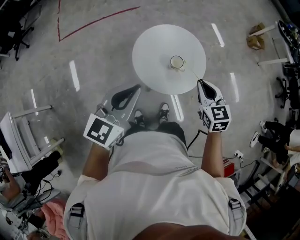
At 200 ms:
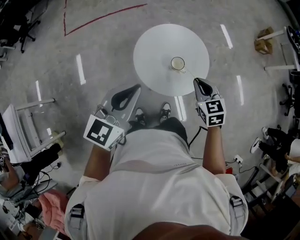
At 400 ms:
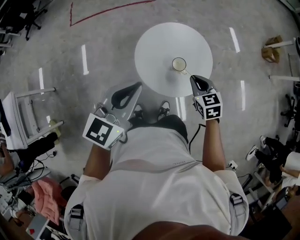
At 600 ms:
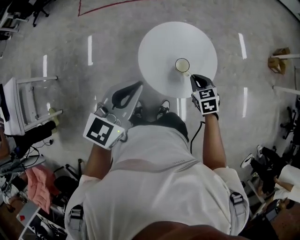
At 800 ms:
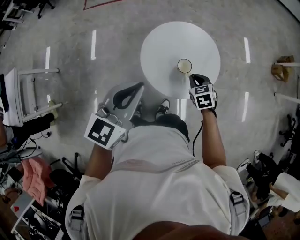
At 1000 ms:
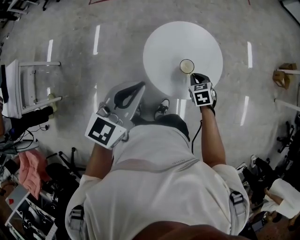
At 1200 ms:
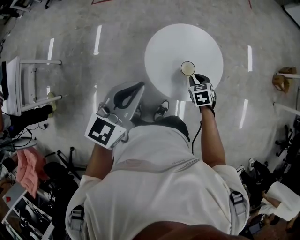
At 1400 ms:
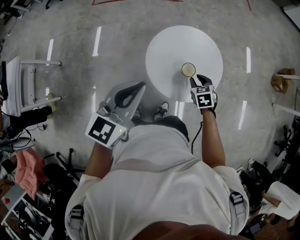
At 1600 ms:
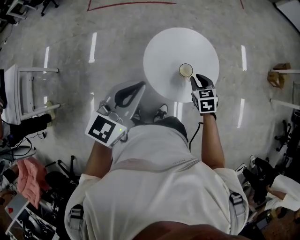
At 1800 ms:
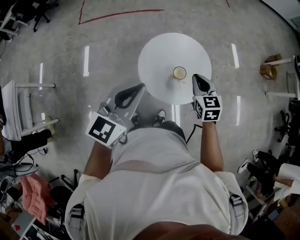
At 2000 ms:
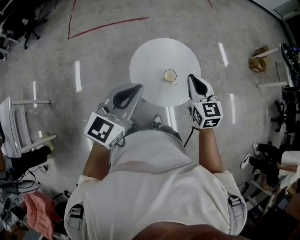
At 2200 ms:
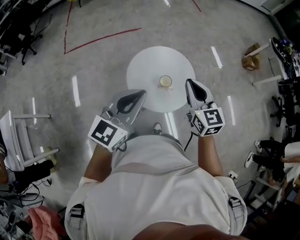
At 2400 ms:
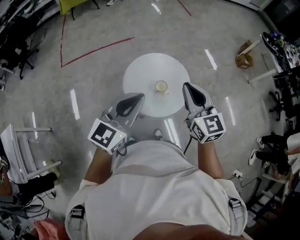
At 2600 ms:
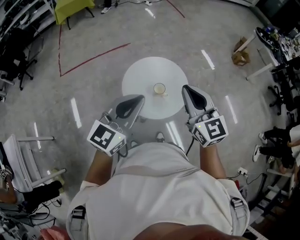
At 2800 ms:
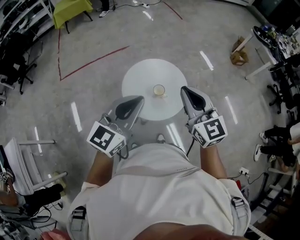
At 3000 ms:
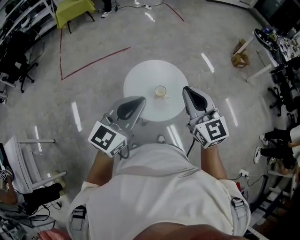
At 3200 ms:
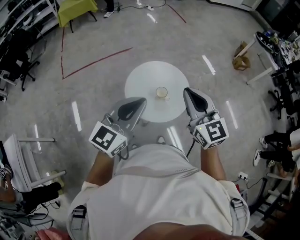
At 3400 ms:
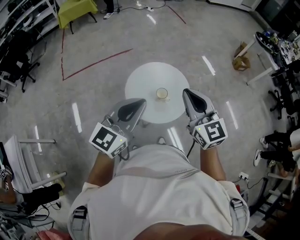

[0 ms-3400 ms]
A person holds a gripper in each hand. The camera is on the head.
0 ms to 1600 ms: The right gripper goes approximately 15 cm downward and forward, and changes its angle by about 20 degrees.
1600 ms to 3400 ms: The left gripper moves upward and to the right, about 10 cm, and changes its angle by about 30 degrees; the right gripper goes approximately 35 cm upward and backward, and angles its fingers upward, by some 40 degrees.

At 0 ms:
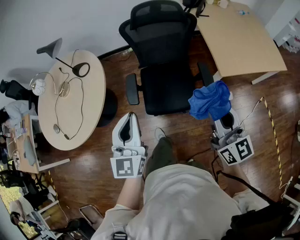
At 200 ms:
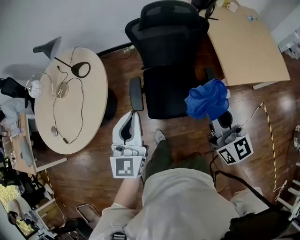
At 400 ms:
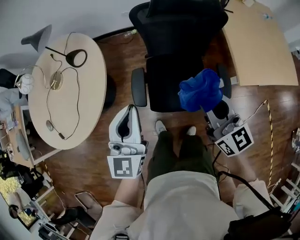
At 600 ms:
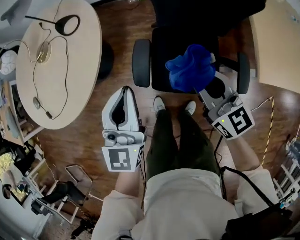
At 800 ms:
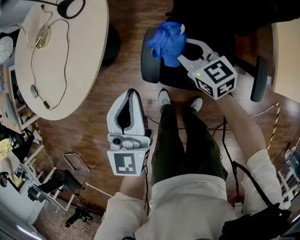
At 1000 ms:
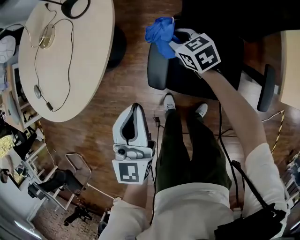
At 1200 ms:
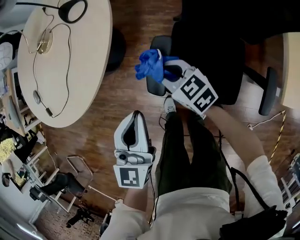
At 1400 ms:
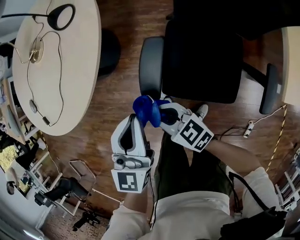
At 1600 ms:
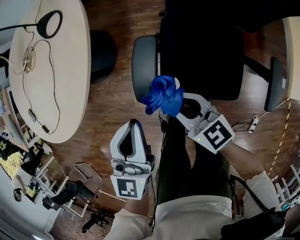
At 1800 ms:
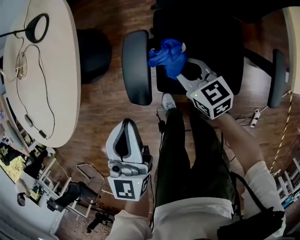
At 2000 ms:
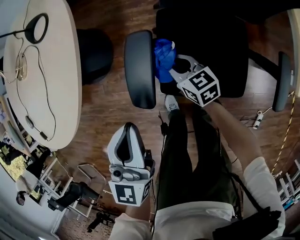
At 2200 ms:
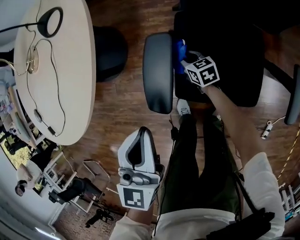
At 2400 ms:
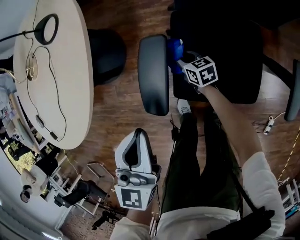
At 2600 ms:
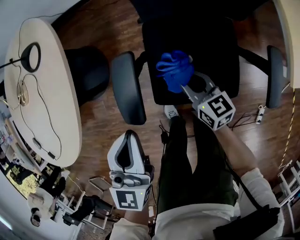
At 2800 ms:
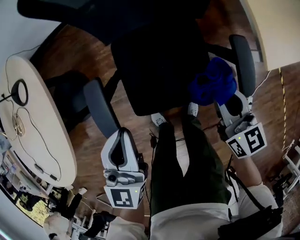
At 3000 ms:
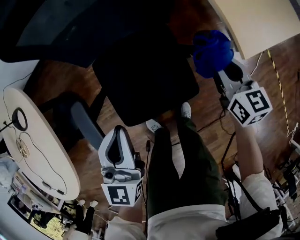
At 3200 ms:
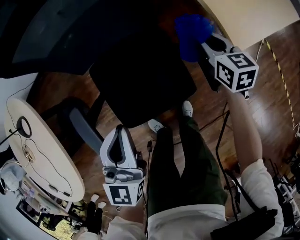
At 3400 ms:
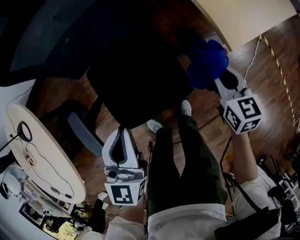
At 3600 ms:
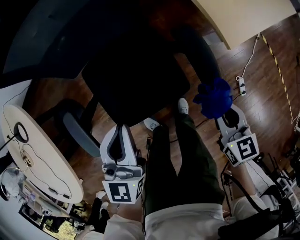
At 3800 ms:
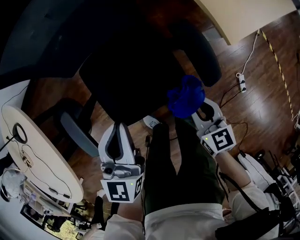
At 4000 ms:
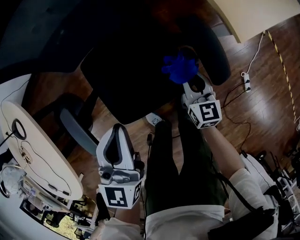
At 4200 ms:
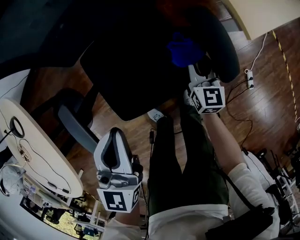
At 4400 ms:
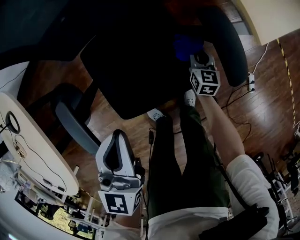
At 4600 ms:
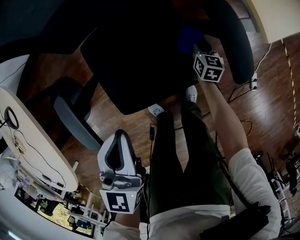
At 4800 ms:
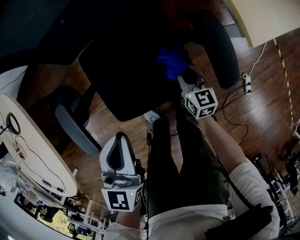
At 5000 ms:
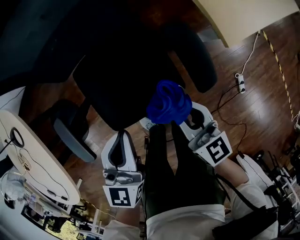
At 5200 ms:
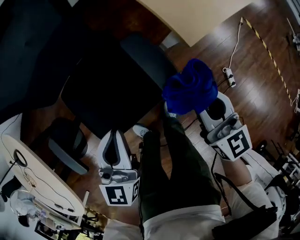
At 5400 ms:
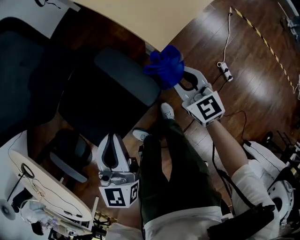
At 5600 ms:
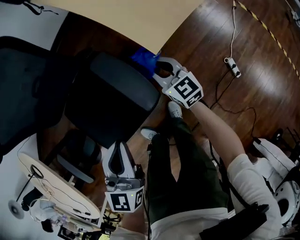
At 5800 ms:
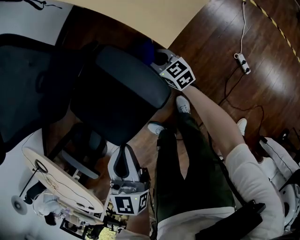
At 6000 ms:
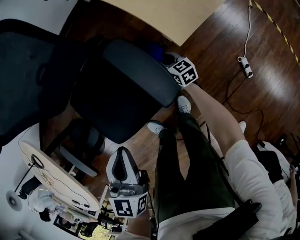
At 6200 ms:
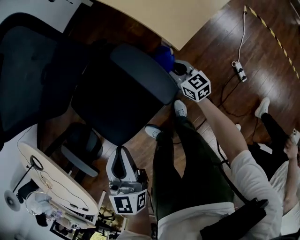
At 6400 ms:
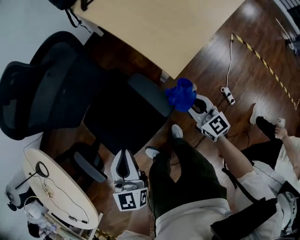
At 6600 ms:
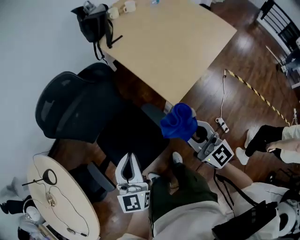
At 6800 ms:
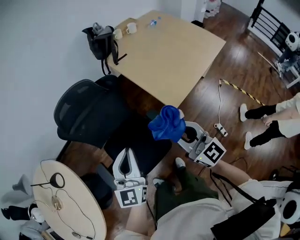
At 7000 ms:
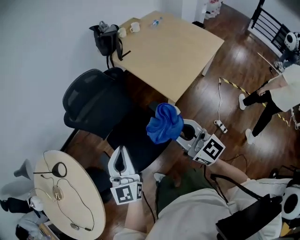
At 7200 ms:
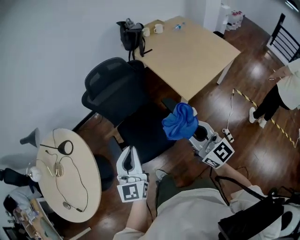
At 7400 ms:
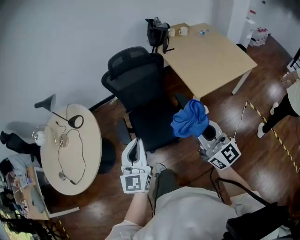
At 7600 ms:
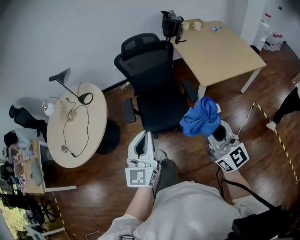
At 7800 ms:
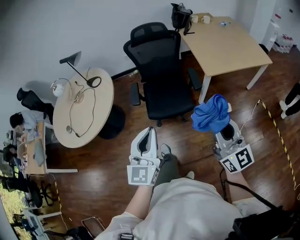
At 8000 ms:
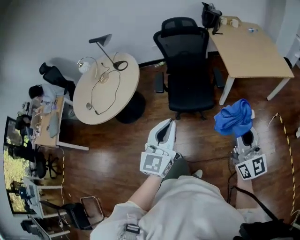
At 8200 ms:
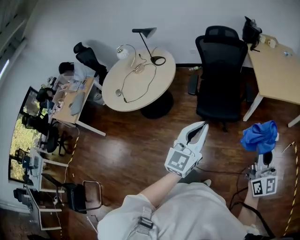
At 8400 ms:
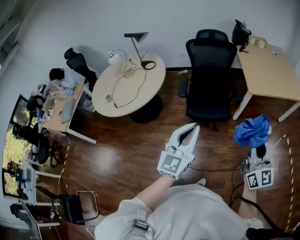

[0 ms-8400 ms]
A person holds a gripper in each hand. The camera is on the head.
0 ms to 1400 ms: Both grippers travel together downward, approximately 40 cm. The right gripper turns by about 70 degrees.
1400 ms to 2800 ms: The right gripper goes downward and returns, approximately 25 cm each way, and turns by about 60 degrees. The left gripper shifts by approximately 15 cm, and swivels some 20 degrees.
2800 ms to 4200 ms: The right gripper goes forward and backward, roughly 20 cm each way, reversing 2 times, and swivels approximately 30 degrees. Meanwhile the left gripper moves to the right, approximately 10 cm.
4200 ms to 5600 ms: The right gripper swings up and down, roughly 35 cm each way, with 2 reversals. The left gripper moves to the right, about 25 cm.
5600 ms to 7000 ms: The left gripper moves upward and to the left, some 40 cm, and rotates some 30 degrees, while the right gripper shifts approximately 50 cm upward, and changes its angle by roughly 30 degrees.
7000 ms to 8400 ms: The pair of grippers is taken backward, approximately 50 cm.

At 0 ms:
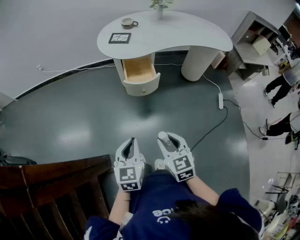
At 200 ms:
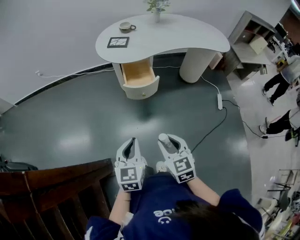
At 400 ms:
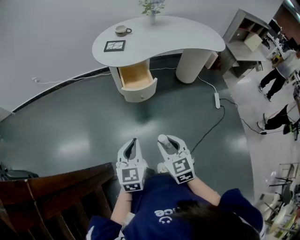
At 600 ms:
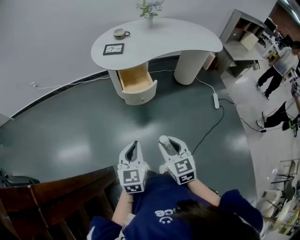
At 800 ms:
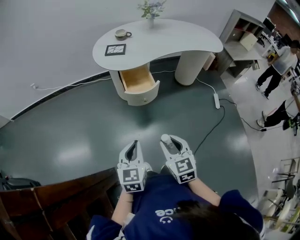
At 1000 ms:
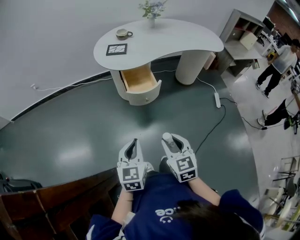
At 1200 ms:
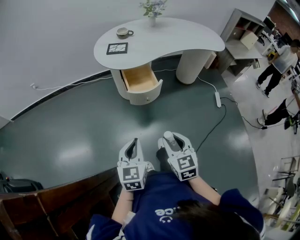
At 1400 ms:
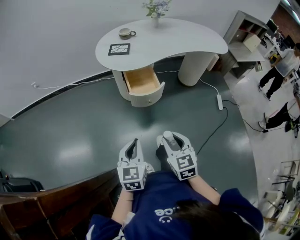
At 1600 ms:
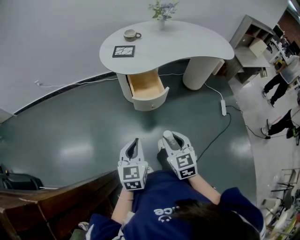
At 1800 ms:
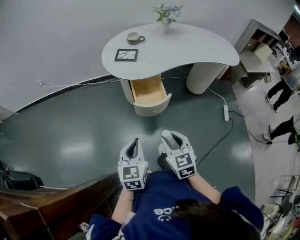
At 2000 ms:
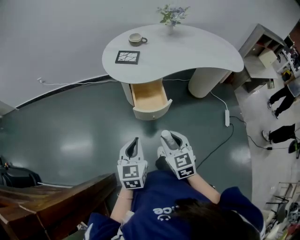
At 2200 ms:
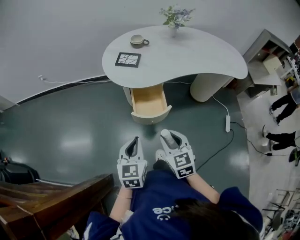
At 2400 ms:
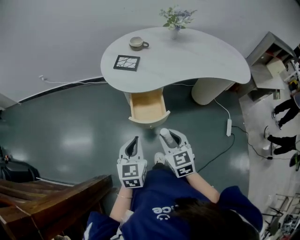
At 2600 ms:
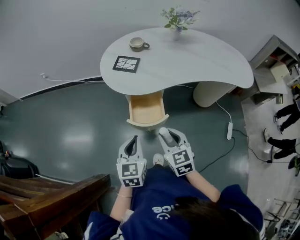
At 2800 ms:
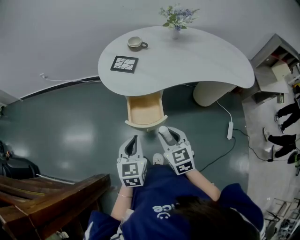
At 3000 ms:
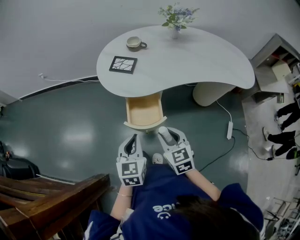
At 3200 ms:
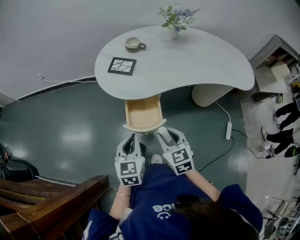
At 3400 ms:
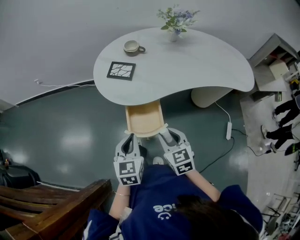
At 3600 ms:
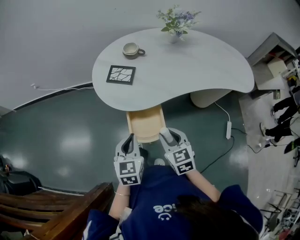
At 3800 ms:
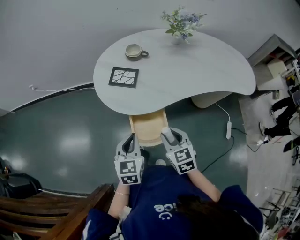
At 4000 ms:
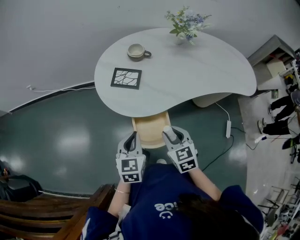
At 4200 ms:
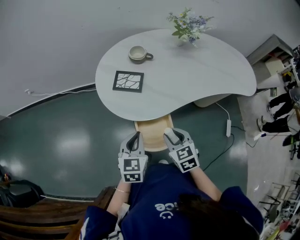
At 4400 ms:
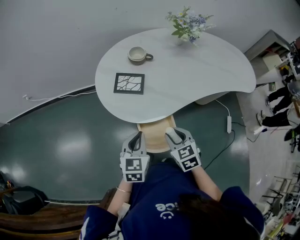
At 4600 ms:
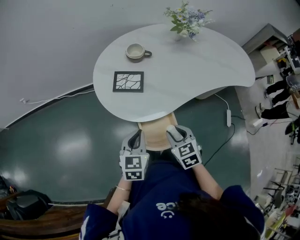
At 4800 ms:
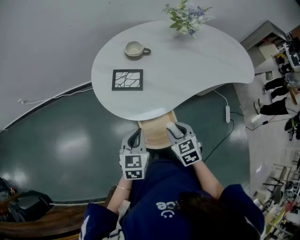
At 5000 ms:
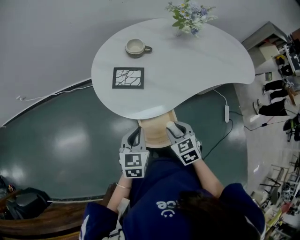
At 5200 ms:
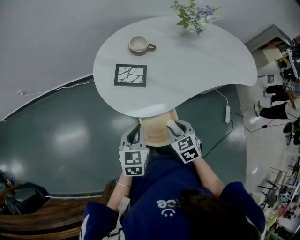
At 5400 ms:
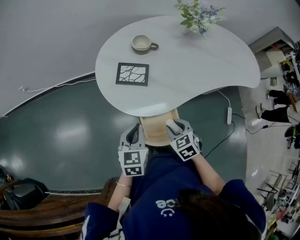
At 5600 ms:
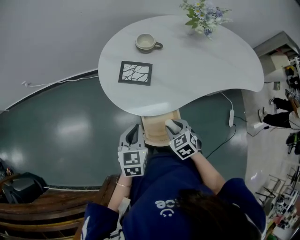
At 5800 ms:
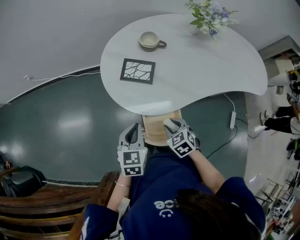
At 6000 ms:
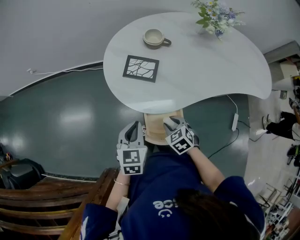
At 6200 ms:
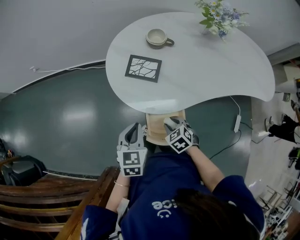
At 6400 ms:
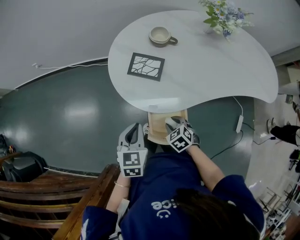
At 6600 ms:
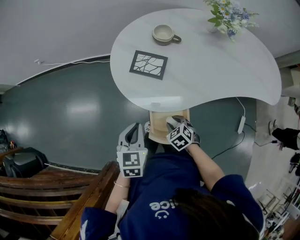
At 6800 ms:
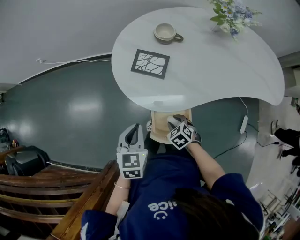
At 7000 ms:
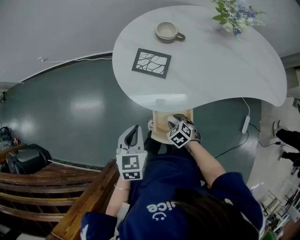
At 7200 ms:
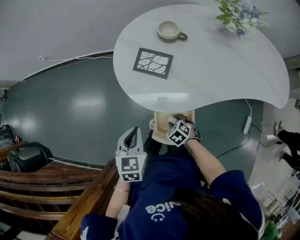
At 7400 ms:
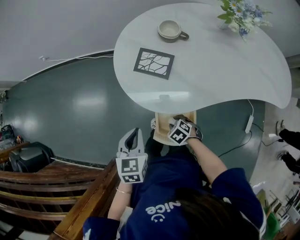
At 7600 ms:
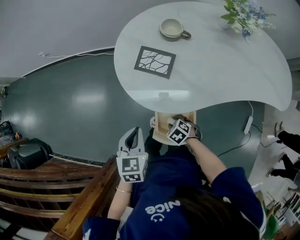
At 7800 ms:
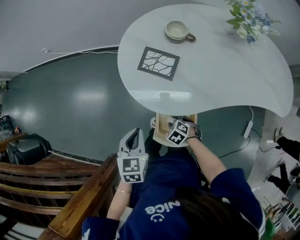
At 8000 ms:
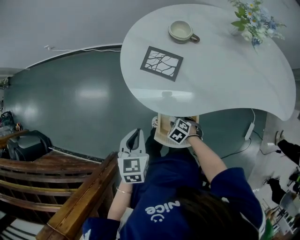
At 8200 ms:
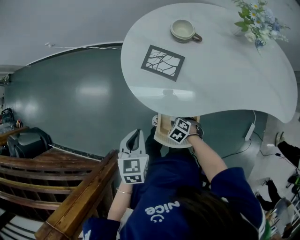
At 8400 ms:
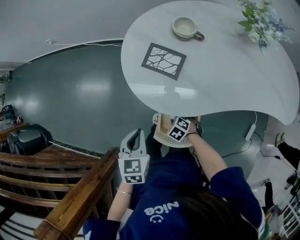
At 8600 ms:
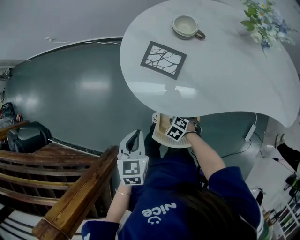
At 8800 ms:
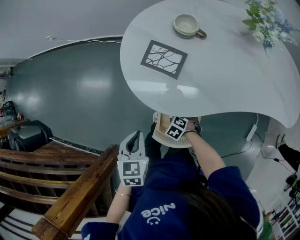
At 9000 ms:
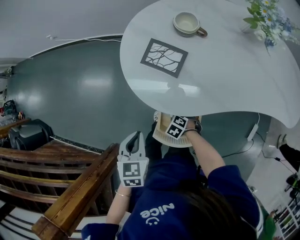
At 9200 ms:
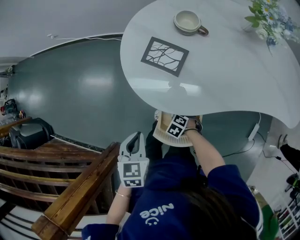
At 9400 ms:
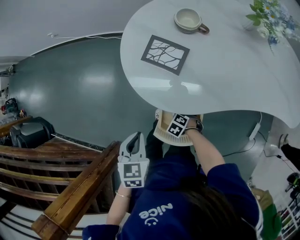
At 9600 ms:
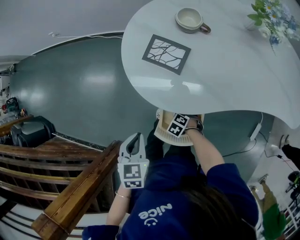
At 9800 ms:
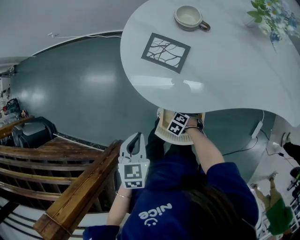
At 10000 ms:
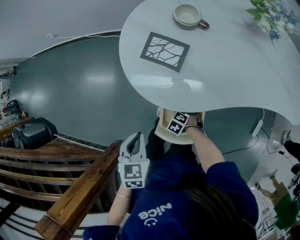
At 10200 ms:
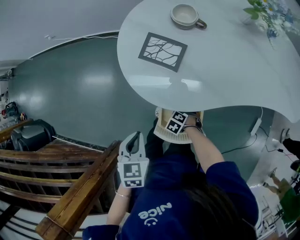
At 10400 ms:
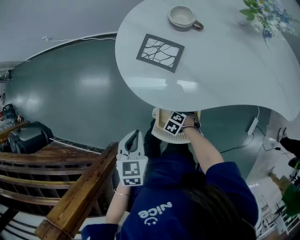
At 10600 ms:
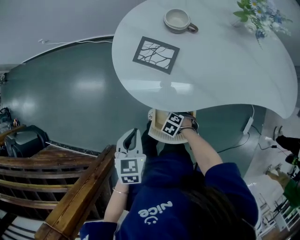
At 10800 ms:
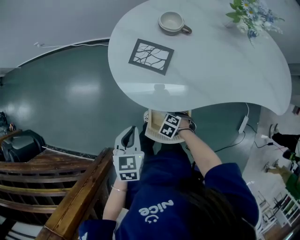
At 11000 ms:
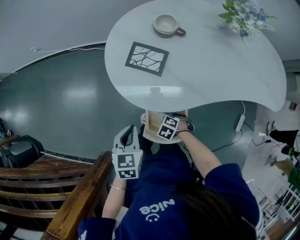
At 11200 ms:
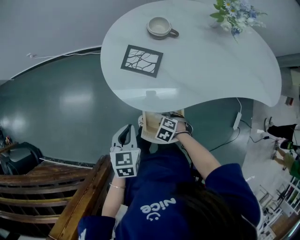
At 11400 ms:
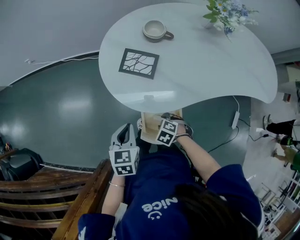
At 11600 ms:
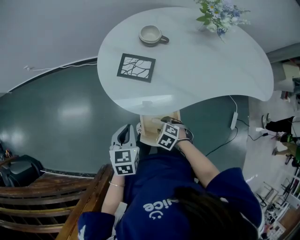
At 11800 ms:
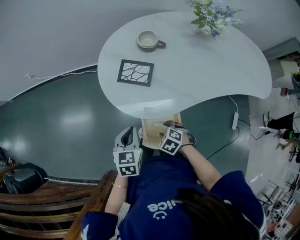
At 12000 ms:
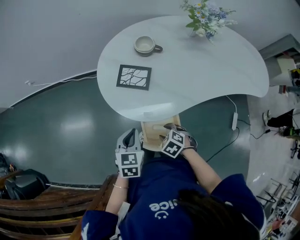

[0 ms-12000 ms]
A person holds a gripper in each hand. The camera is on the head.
0 ms to 1600 ms: The grippers both shift forward by about 10 cm.
1600 ms to 3000 ms: The two grippers go about 25 cm forward and to the right.
3000 ms to 4400 ms: The grippers both shift forward by roughly 15 cm.
4400 ms to 6000 ms: The right gripper heads downward, covering roughly 10 cm, and turns by about 20 degrees.
6000 ms to 7600 ms: The right gripper moves downward, some 10 cm, and swivels about 20 degrees.
7600 ms to 9000 ms: The right gripper heads downward, covering about 5 cm.
9000 ms to 10400 ms: There are only small adjustments of the grippers.
10400 ms to 12000 ms: The left gripper ends up about 5 cm from where it was, while the right gripper heads upward, covering roughly 15 cm, and rotates some 20 degrees.
